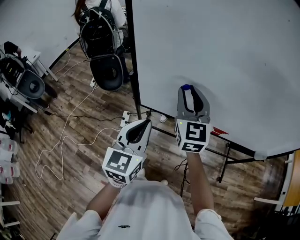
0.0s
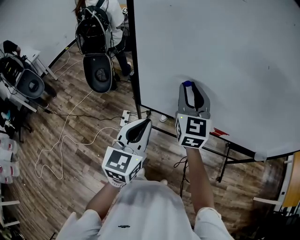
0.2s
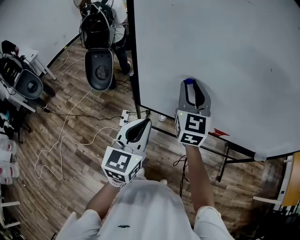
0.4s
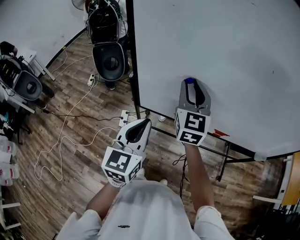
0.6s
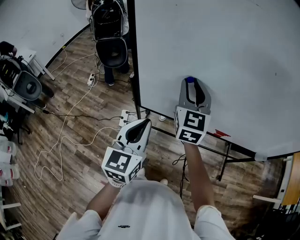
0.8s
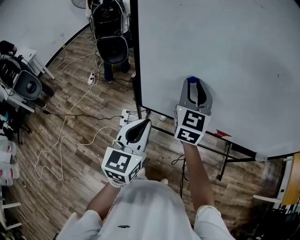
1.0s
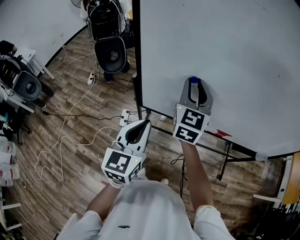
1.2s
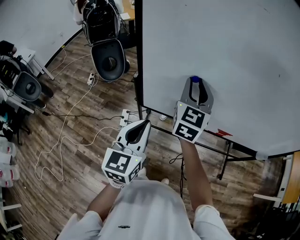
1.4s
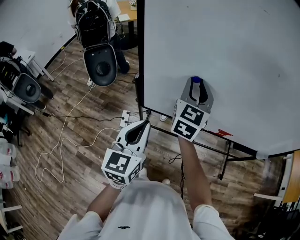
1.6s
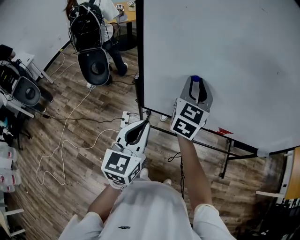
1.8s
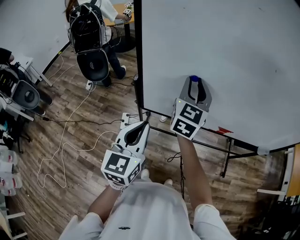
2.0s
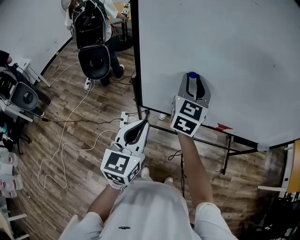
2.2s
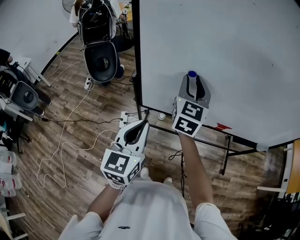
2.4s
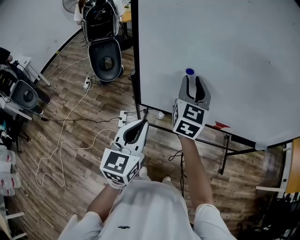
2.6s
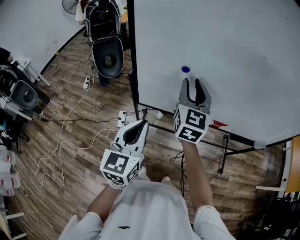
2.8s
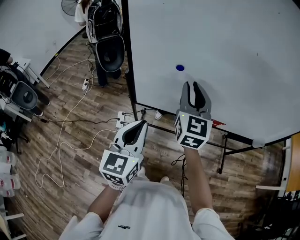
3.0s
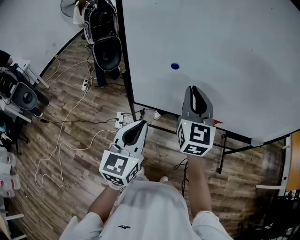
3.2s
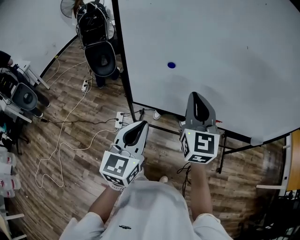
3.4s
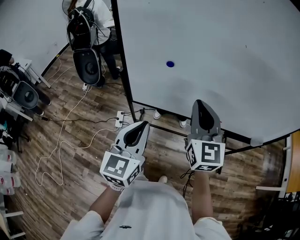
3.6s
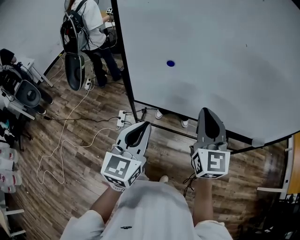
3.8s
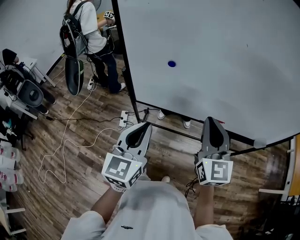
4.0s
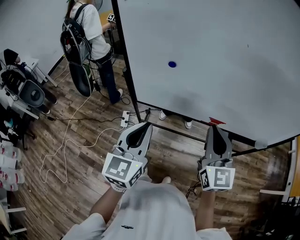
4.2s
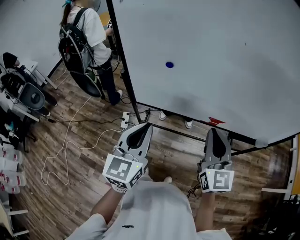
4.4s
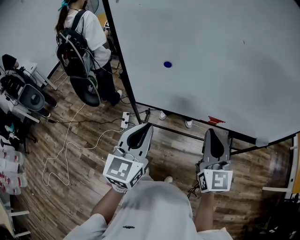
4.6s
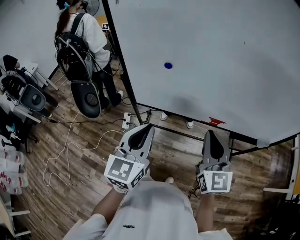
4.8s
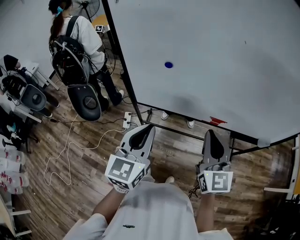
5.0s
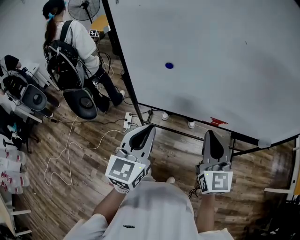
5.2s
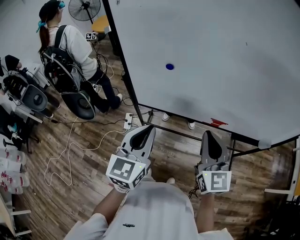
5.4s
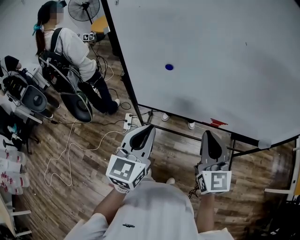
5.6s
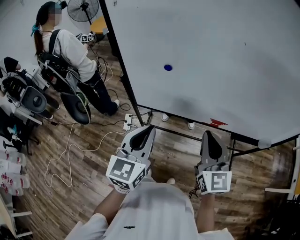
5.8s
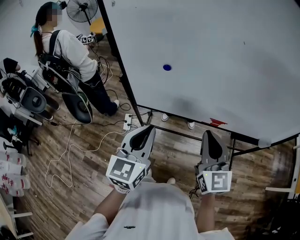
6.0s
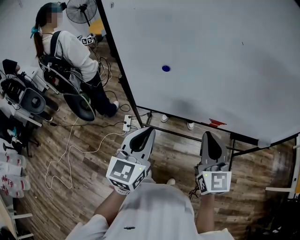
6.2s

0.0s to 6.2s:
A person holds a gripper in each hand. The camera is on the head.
0.0s to 1.6s: The right gripper travels forward by some 5 cm, and turns by about 20 degrees, while the left gripper changes place by some 5 cm.
1.6s to 3.2s: The right gripper heads backward and to the right, covering roughly 10 cm, while the left gripper goes roughly 5 cm to the right.
3.2s to 4.6s: The right gripper goes approximately 15 cm to the right and backward.
4.6s to 6.2s: There are only small adjustments of the grippers.

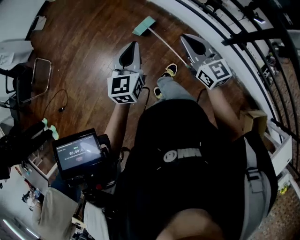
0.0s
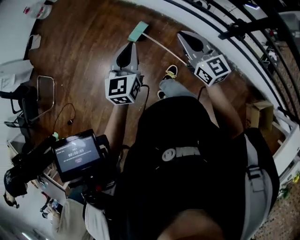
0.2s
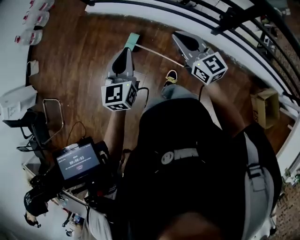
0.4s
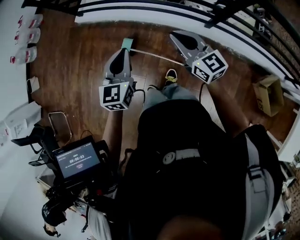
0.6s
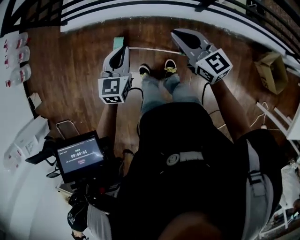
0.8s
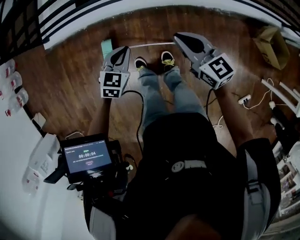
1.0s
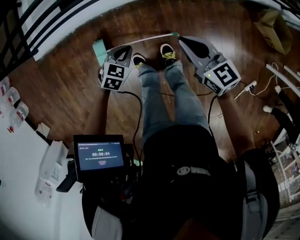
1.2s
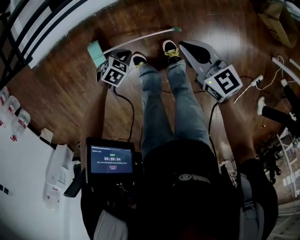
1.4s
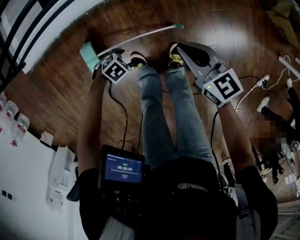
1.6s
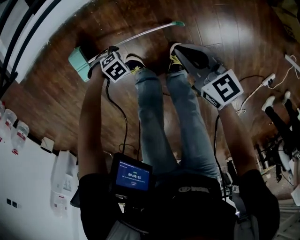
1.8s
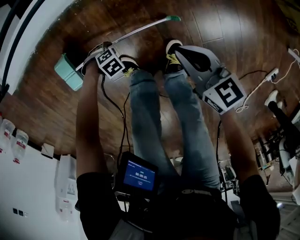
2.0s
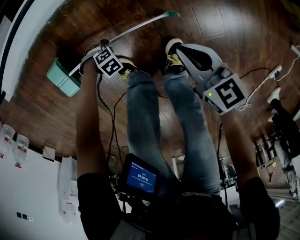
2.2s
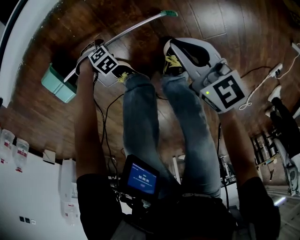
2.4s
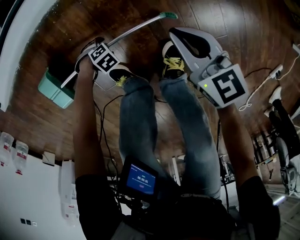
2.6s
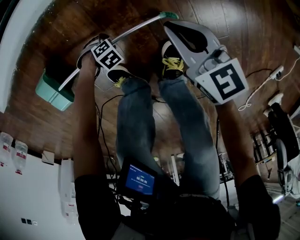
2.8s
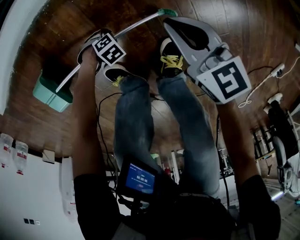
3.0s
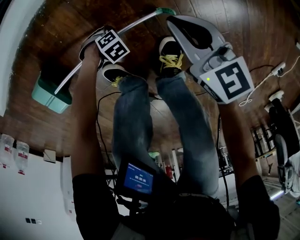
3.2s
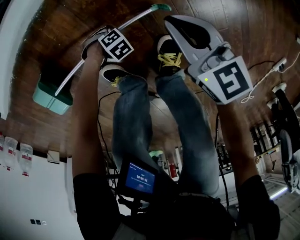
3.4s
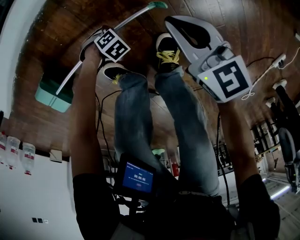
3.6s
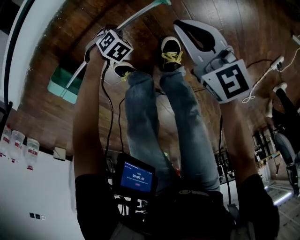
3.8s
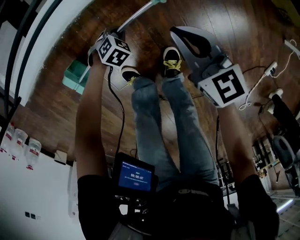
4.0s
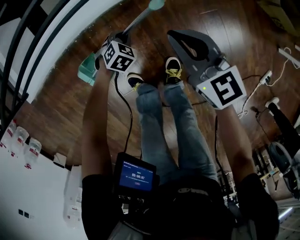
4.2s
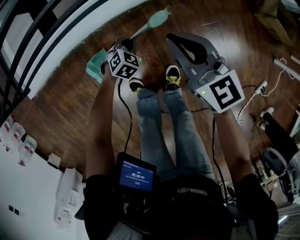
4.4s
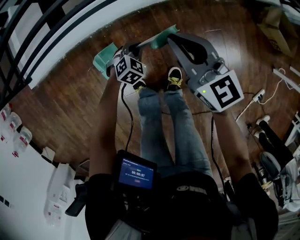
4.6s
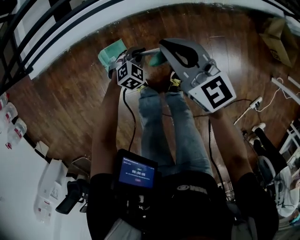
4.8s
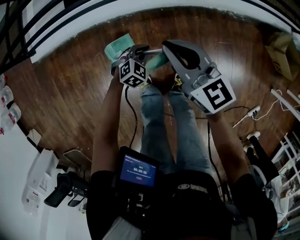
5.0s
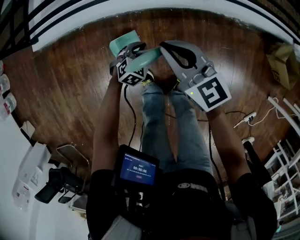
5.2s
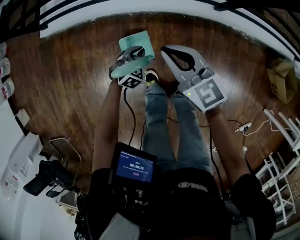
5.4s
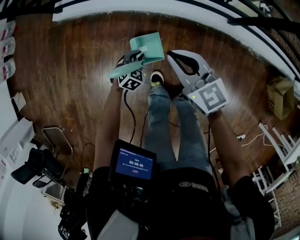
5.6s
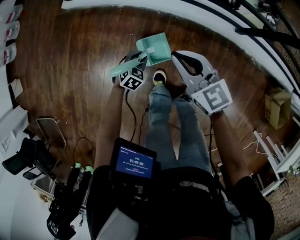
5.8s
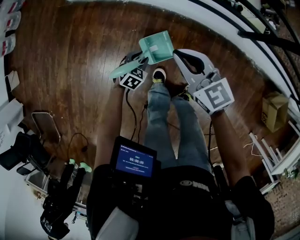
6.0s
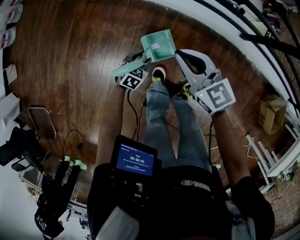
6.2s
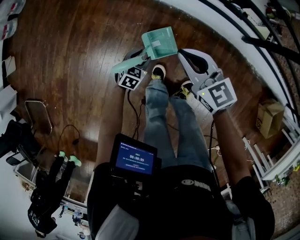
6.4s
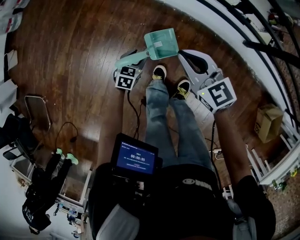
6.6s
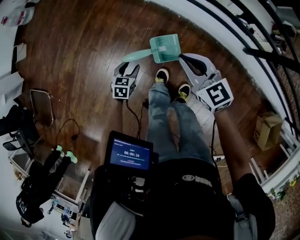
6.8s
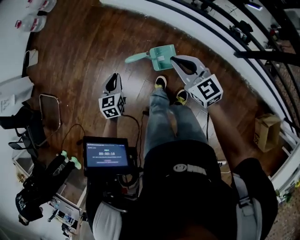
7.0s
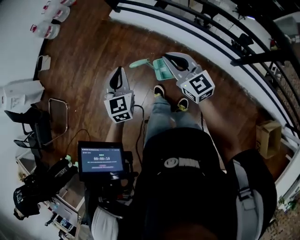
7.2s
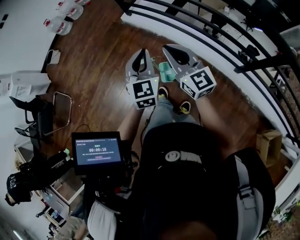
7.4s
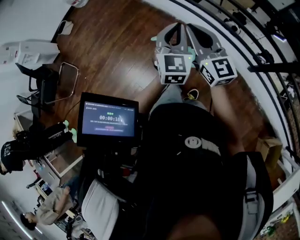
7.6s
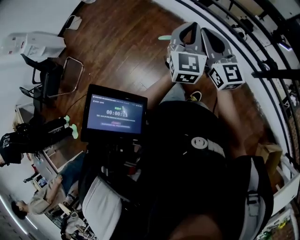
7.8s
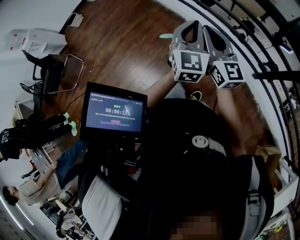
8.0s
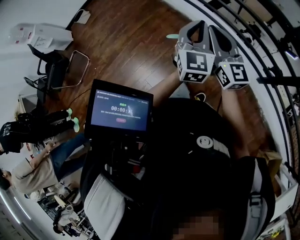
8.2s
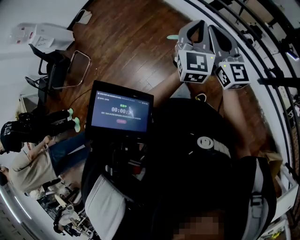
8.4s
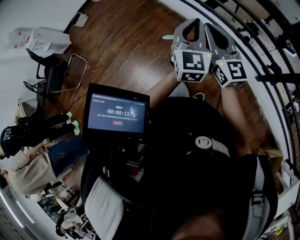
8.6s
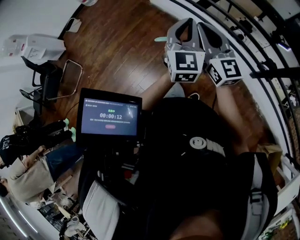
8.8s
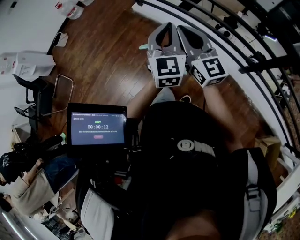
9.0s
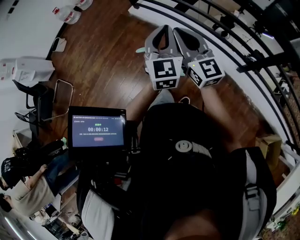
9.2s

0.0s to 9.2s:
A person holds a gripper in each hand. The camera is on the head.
0.0s to 1.6s: The right gripper heads downward, covering about 35 cm, and rotates approximately 50 degrees, while the left gripper heads downward, covering approximately 60 cm, tilts its fingers roughly 50 degrees downward, and opens.
1.6s to 3.0s: Both grippers move downward, approximately 30 cm. The left gripper turns by about 20 degrees.
3.0s to 4.6s: The two grippers go about 40 cm upward. The right gripper changes its angle by some 20 degrees. Meanwhile the left gripper turns by about 40 degrees, and closes its fingers.
4.6s to 6.2s: The left gripper changes place by about 35 cm, twists roughly 40 degrees counterclockwise, seen from behind, and opens its fingers. Meanwhile the right gripper moves approximately 35 cm, and changes its angle by roughly 40 degrees.
6.2s to 7.6s: The right gripper shifts roughly 35 cm upward, and changes its angle by about 30 degrees; the left gripper shifts roughly 60 cm upward, points its fingers roughly 40 degrees further upward, and closes its fingers.
7.6s to 9.2s: The grippers make only small movements.

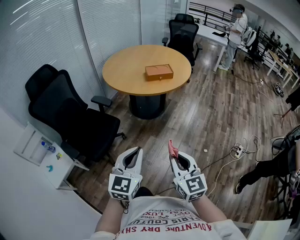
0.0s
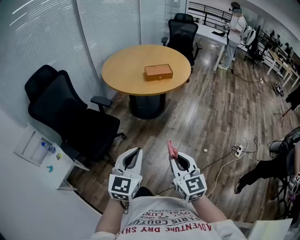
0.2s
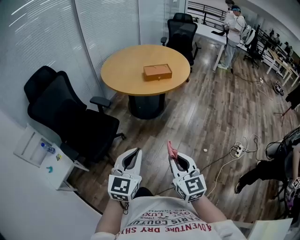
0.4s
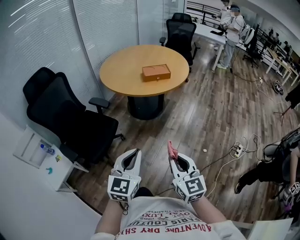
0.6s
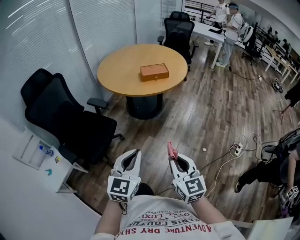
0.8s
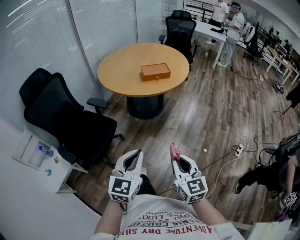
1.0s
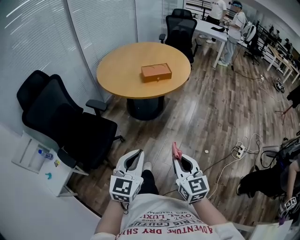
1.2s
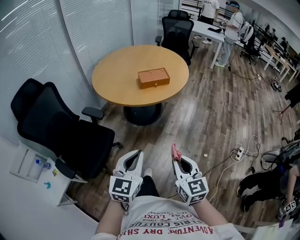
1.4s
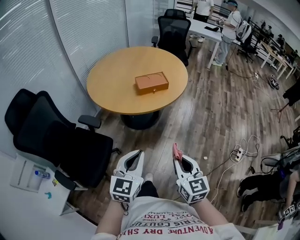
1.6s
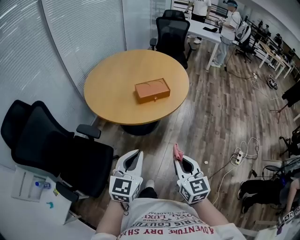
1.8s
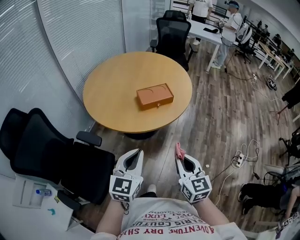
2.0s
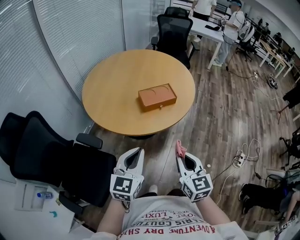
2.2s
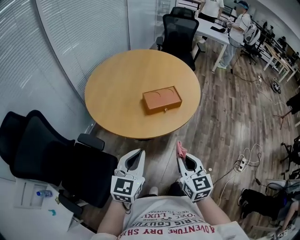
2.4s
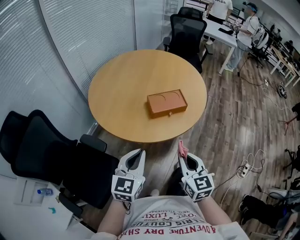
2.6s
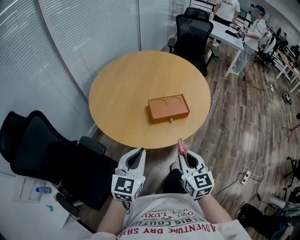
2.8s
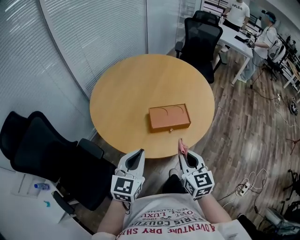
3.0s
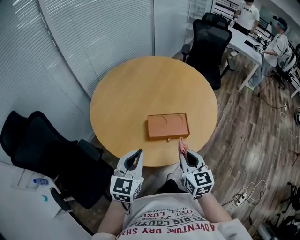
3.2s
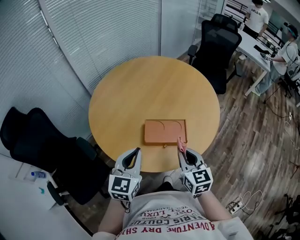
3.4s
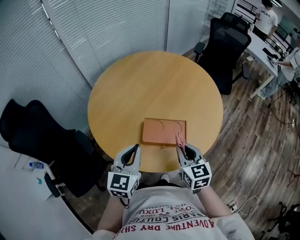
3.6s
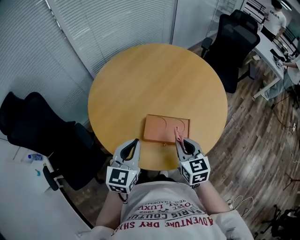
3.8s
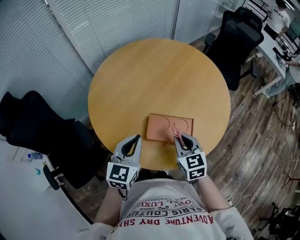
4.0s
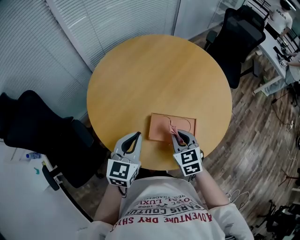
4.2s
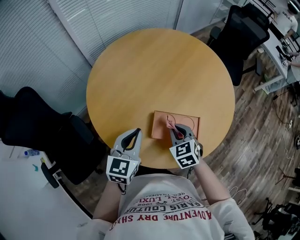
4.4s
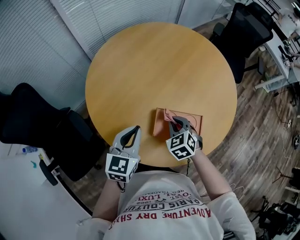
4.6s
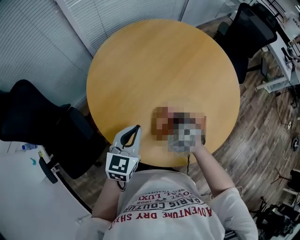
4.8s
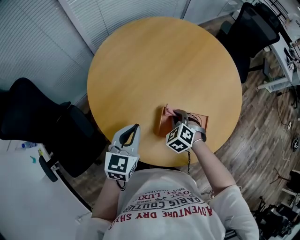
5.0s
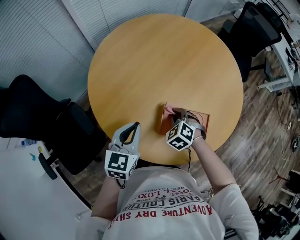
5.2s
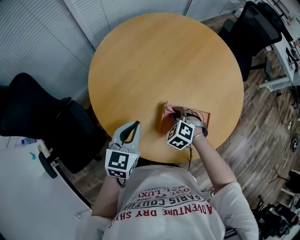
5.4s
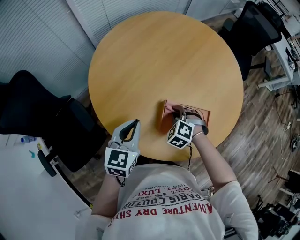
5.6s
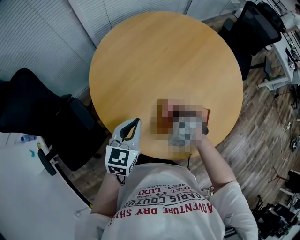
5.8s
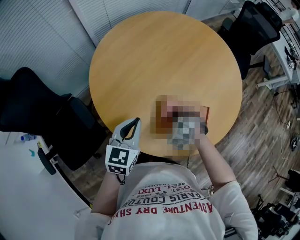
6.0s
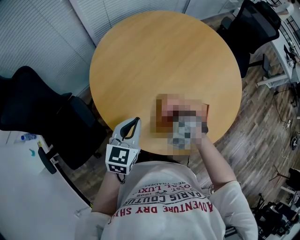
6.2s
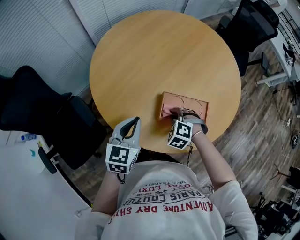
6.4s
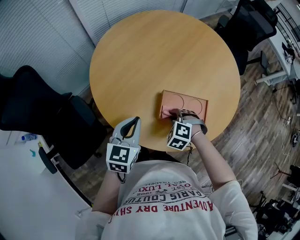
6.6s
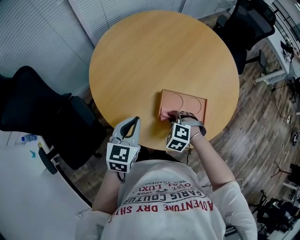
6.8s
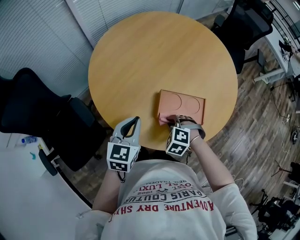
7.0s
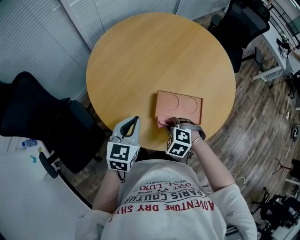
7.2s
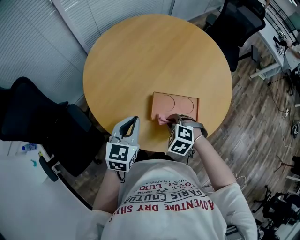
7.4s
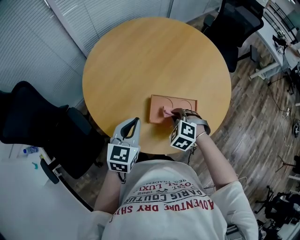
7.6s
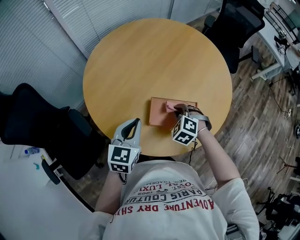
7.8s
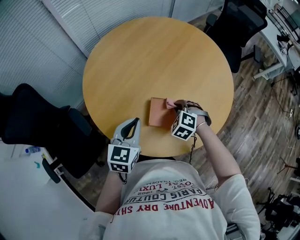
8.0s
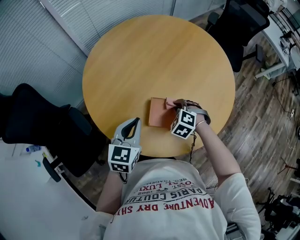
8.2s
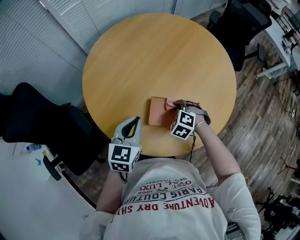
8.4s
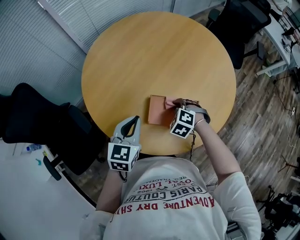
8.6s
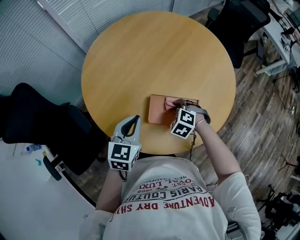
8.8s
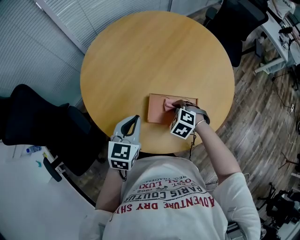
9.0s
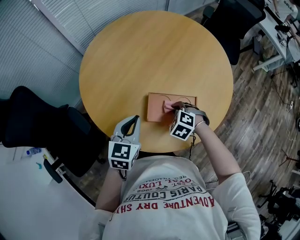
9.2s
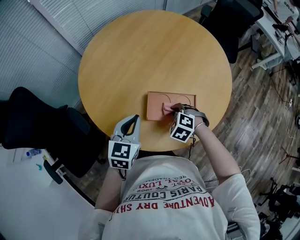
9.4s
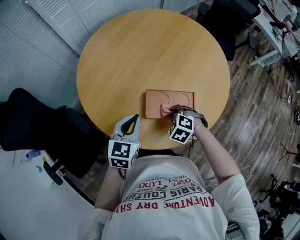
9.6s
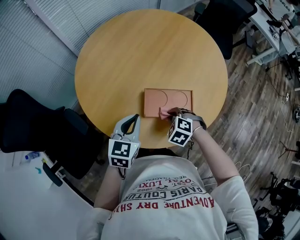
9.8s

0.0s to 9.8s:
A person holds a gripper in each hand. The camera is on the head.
0.0s to 1.4s: The two grippers go approximately 15 cm forward.
1.4s to 2.8s: The pair of grippers is taken forward, about 40 cm.
2.8s to 4.2s: The two grippers go approximately 30 cm forward. The right gripper rotates some 40 degrees. Meanwhile the left gripper swivels some 20 degrees.
4.2s to 5.6s: The left gripper travels to the left and downward by some 10 cm. Meanwhile the right gripper heads downward, forward and to the left, covering some 15 cm, and rotates around the line of its fingers by roughly 50 degrees, counterclockwise from behind.
5.6s to 7.0s: The left gripper shifts by approximately 5 cm, while the right gripper travels backward by approximately 10 cm.
7.0s to 8.4s: The left gripper is displaced to the right by approximately 5 cm. Meanwhile the right gripper goes about 15 cm forward and to the right.
8.4s to 9.8s: The right gripper heads backward, covering approximately 10 cm.
